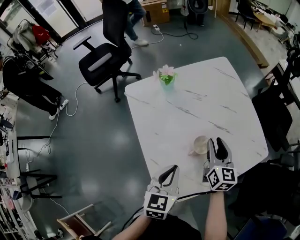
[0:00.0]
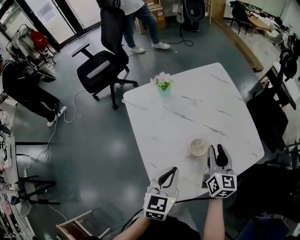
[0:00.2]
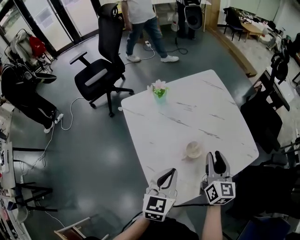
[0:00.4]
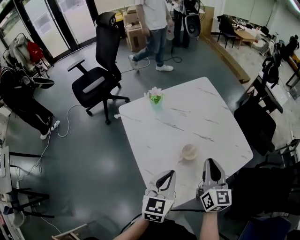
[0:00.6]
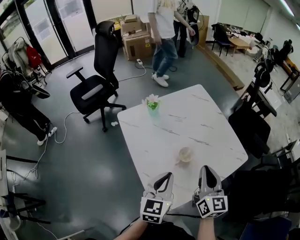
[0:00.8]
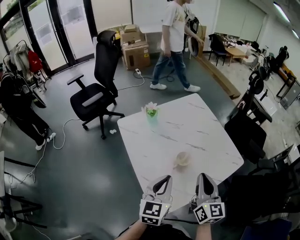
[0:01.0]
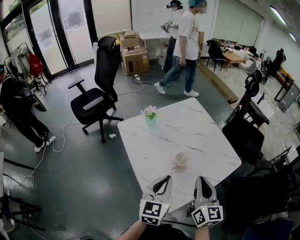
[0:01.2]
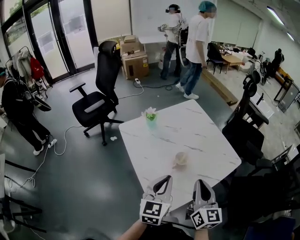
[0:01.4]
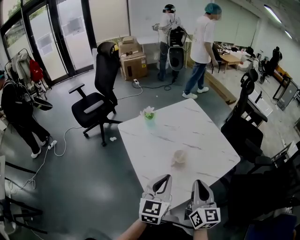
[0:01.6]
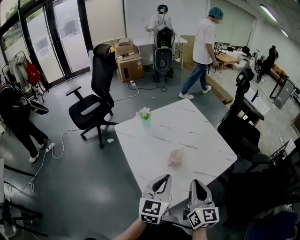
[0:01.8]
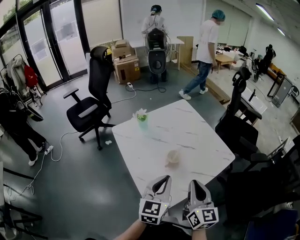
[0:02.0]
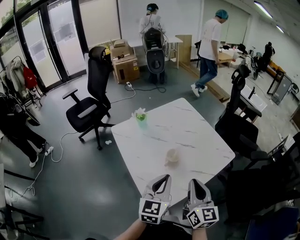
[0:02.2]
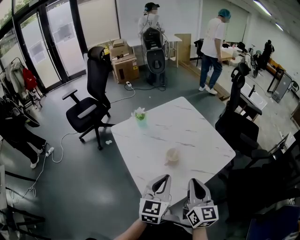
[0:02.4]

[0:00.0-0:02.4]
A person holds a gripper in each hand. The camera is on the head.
0:00.0 to 0:01.2: The left gripper goes about 10 cm upward. Meanwhile the right gripper shifts approximately 20 cm backward and upward, and closes its fingers.
0:01.2 to 0:02.4: The grippers move only a little.

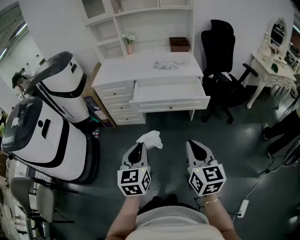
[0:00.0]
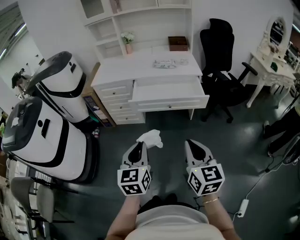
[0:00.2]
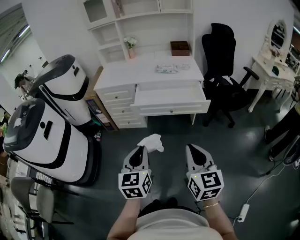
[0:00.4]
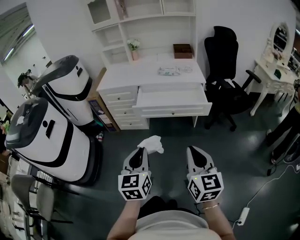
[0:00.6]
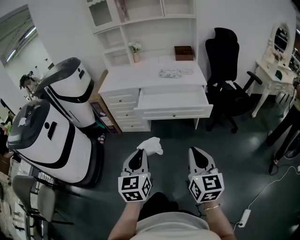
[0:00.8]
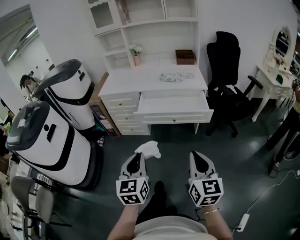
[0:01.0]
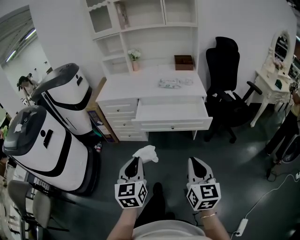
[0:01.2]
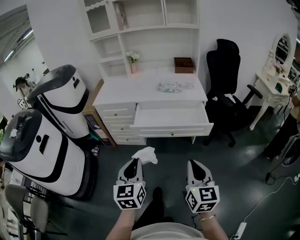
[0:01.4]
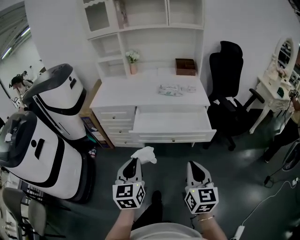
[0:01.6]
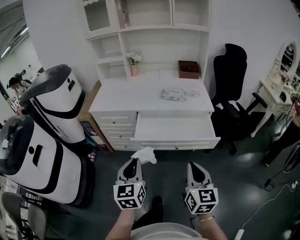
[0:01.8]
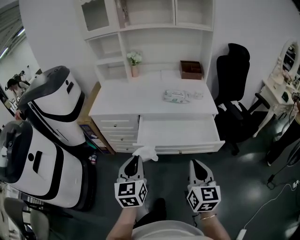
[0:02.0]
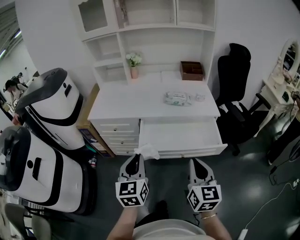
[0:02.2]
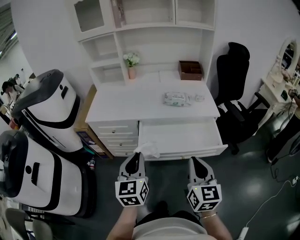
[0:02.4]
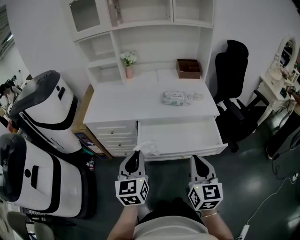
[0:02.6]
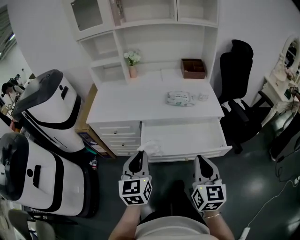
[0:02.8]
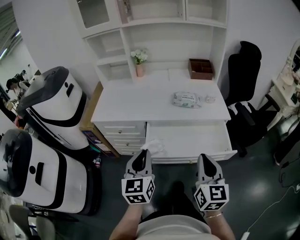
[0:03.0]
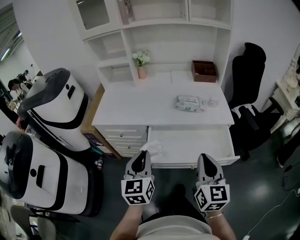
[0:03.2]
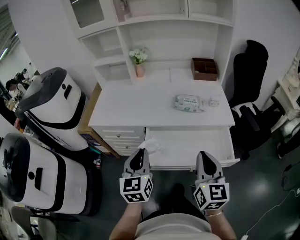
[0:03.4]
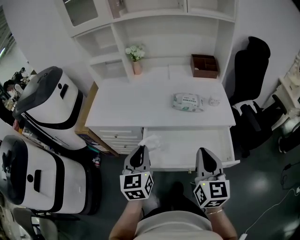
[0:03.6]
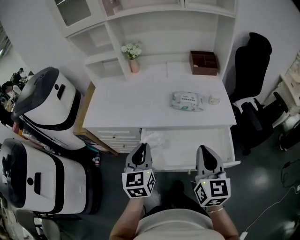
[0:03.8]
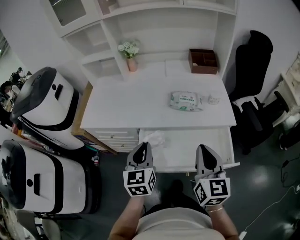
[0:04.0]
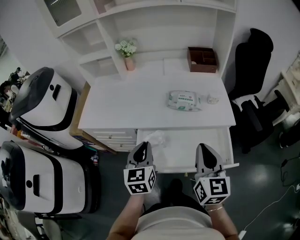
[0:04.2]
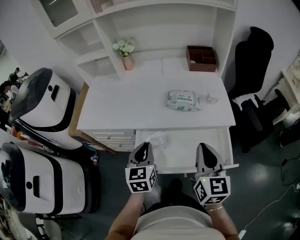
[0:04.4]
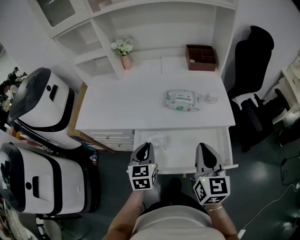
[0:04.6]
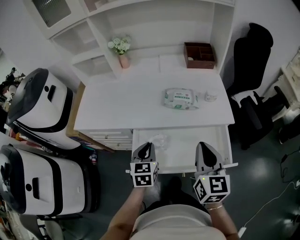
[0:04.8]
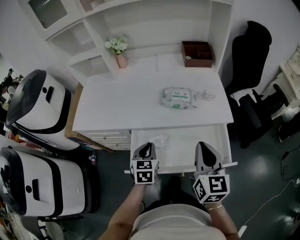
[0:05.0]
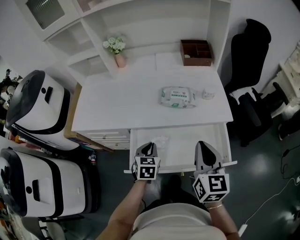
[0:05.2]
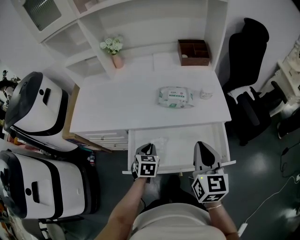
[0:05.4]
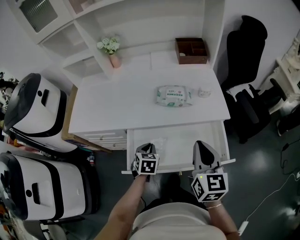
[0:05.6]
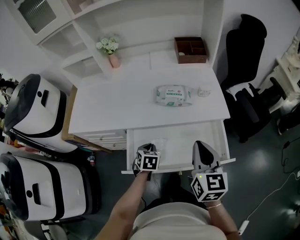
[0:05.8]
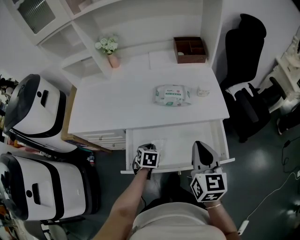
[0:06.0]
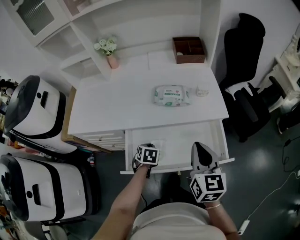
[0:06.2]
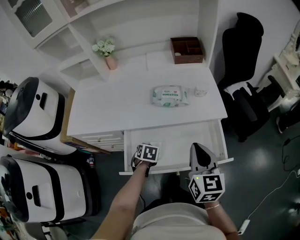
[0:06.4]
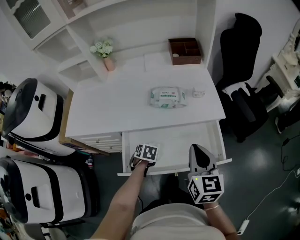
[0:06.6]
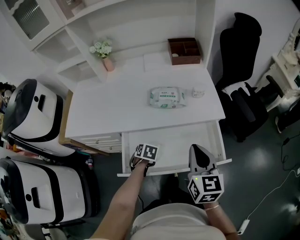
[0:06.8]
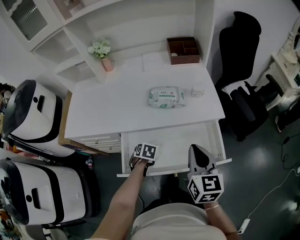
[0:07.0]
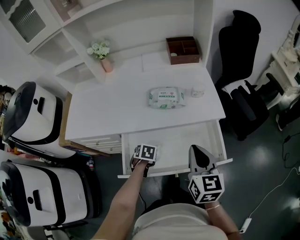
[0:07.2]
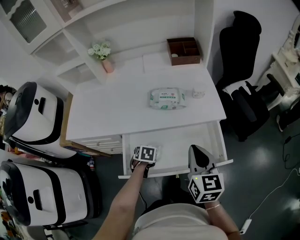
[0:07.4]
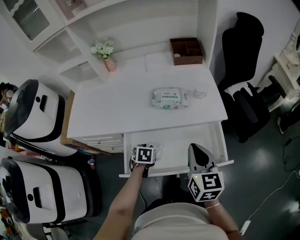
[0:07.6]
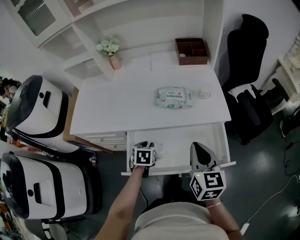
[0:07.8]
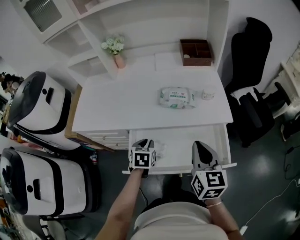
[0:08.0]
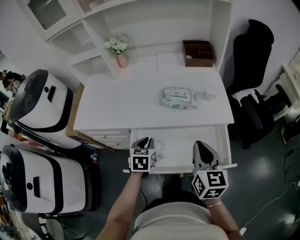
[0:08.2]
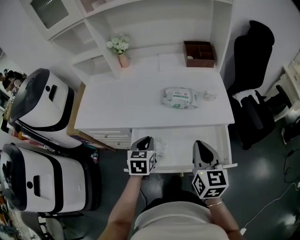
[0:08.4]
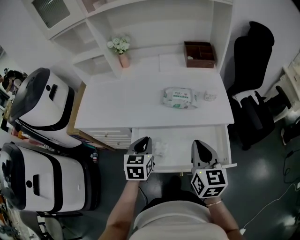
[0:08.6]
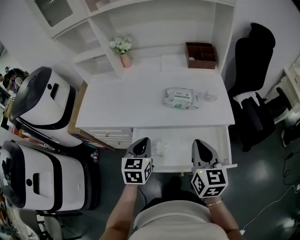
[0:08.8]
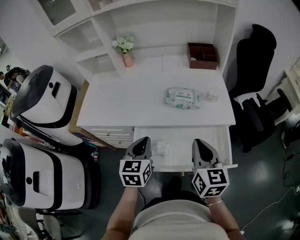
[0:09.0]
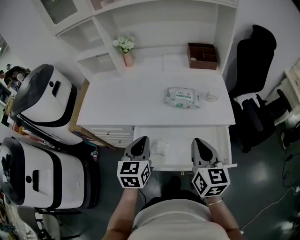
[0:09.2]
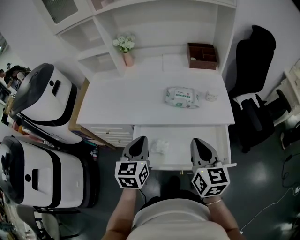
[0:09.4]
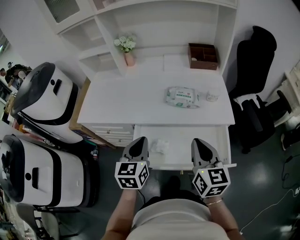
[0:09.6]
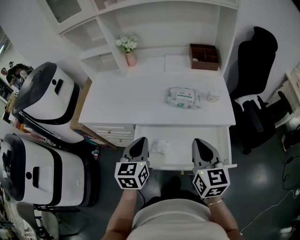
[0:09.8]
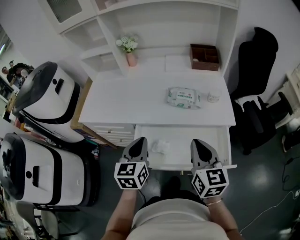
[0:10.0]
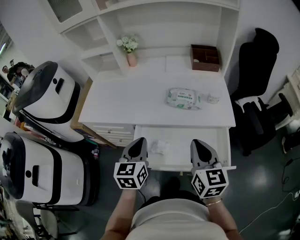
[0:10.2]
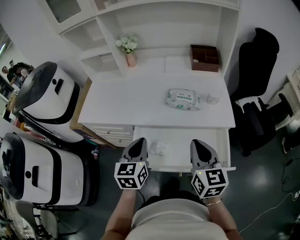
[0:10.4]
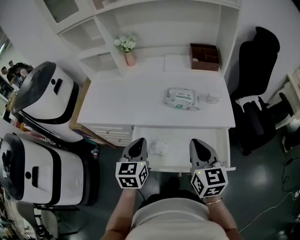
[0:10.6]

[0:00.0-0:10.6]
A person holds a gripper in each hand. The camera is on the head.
0:00.0 to 0:01.6: The grippers both shift forward by about 15 cm.
0:01.6 to 0:03.0: The grippers both shift forward by approximately 20 cm.
0:03.0 to 0:04.6: The left gripper shifts about 20 cm forward, downward and to the right, while the right gripper travels forward by about 15 cm.
0:04.6 to 0:06.0: The left gripper is displaced downward by about 15 cm, and tips its fingers downward by about 30 degrees.
0:06.0 to 0:07.6: The left gripper opens its fingers.
0:07.6 to 0:09.0: The left gripper shifts some 20 cm upward, tips its fingers upward by roughly 40 degrees, and closes up.
0:09.0 to 0:10.6: There are only small adjustments of the grippers.

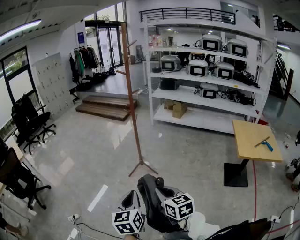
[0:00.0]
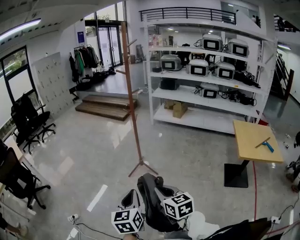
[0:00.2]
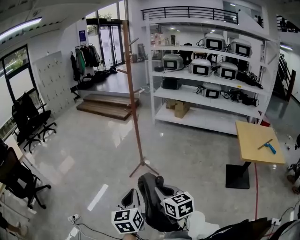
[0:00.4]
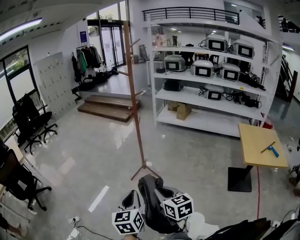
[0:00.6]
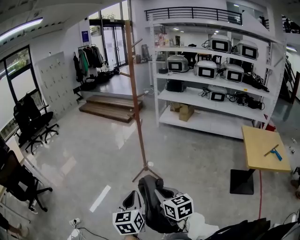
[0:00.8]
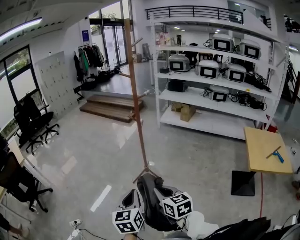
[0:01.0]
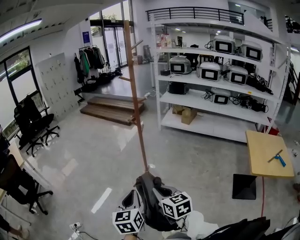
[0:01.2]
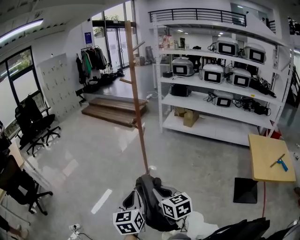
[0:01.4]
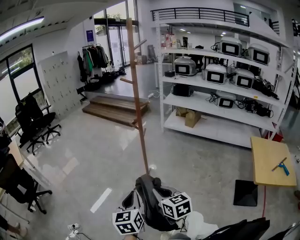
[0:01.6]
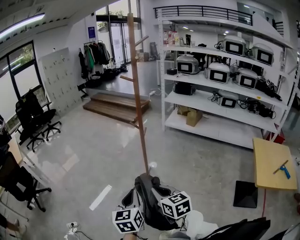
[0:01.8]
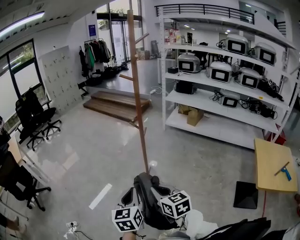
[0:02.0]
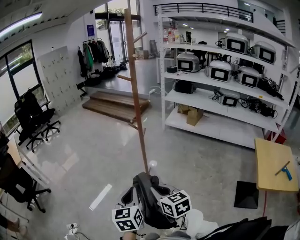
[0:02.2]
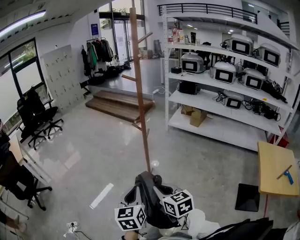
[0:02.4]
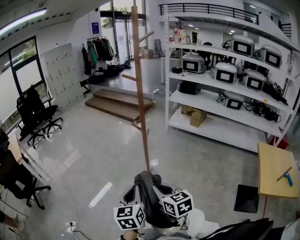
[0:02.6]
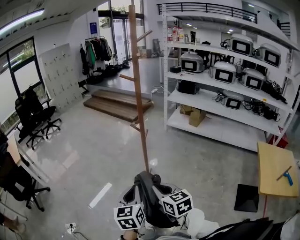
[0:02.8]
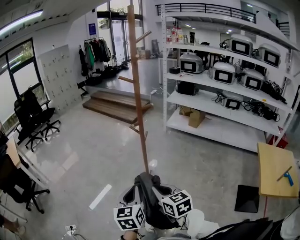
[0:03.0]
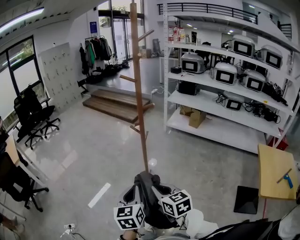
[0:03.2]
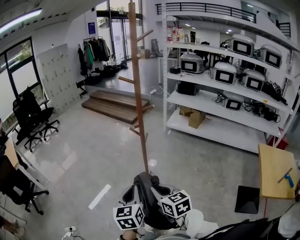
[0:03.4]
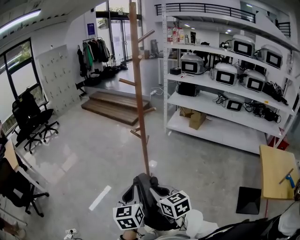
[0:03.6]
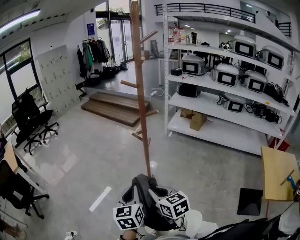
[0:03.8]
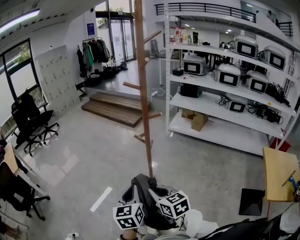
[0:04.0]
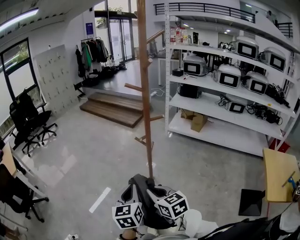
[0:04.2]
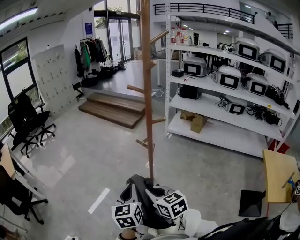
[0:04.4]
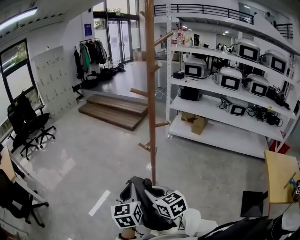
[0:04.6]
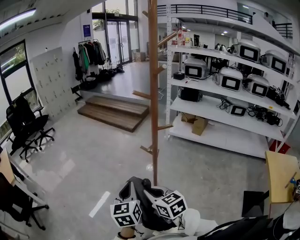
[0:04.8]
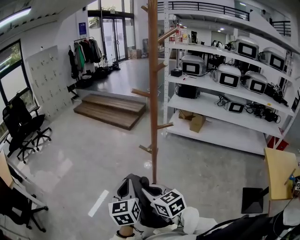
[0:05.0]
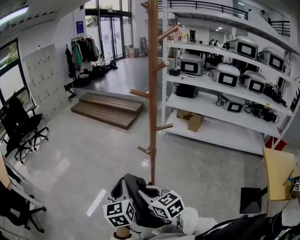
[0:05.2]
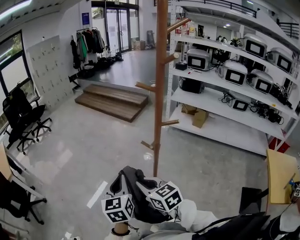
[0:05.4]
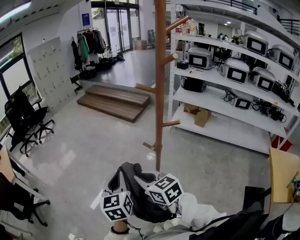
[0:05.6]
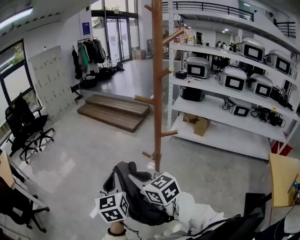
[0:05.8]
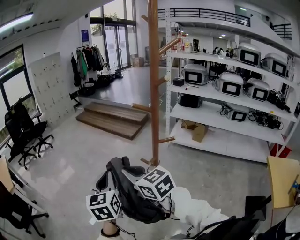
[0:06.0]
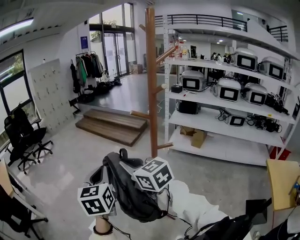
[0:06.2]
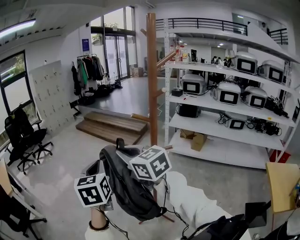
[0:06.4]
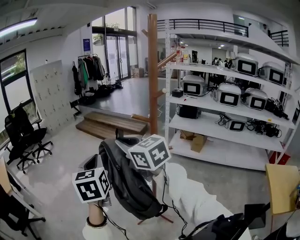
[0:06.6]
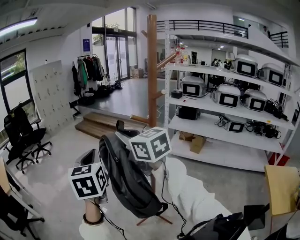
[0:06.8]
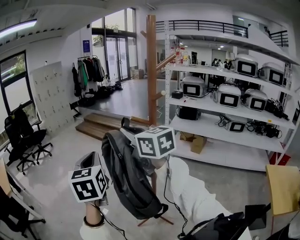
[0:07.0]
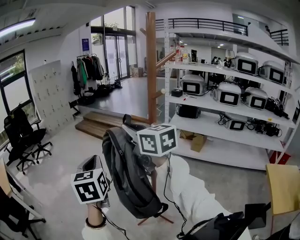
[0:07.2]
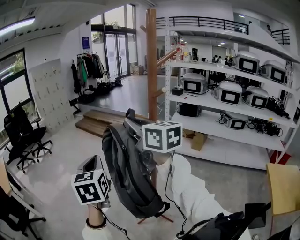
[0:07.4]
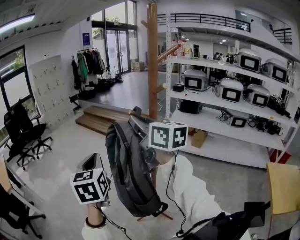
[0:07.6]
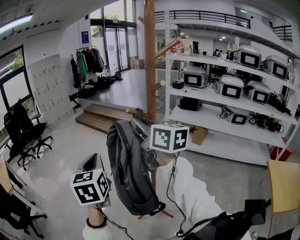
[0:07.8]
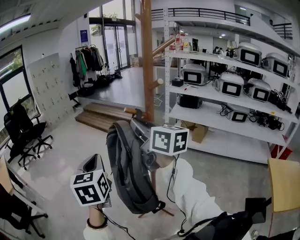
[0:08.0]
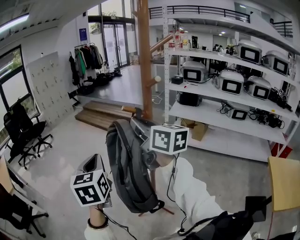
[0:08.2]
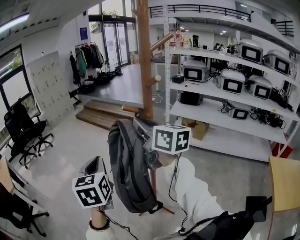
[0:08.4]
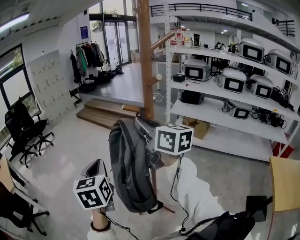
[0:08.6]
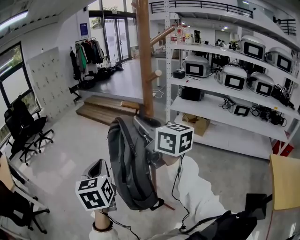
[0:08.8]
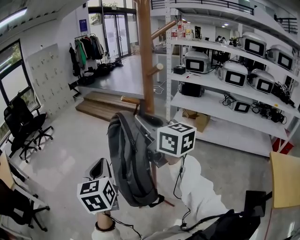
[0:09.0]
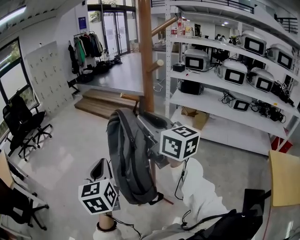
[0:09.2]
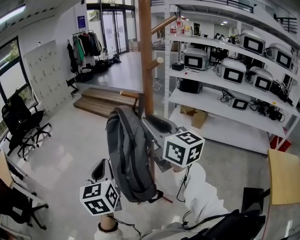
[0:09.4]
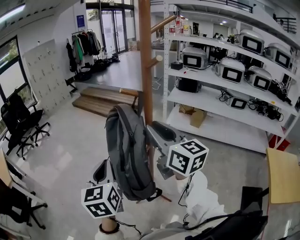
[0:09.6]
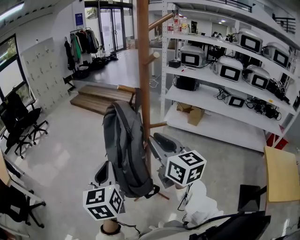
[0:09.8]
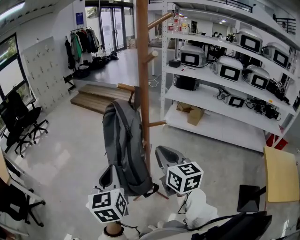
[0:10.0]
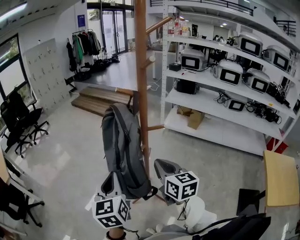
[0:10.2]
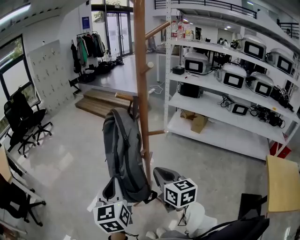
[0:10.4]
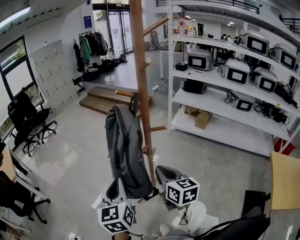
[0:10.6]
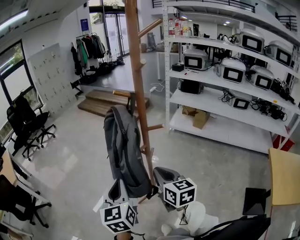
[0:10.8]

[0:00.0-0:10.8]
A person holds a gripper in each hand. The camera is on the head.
0:00.0 to 0:01.6: The grippers both shift forward by approximately 20 cm.
0:01.6 to 0:03.0: Both grippers travel together forward, roughly 10 cm.
0:03.0 to 0:04.6: The right gripper shifts some 15 cm forward and to the left. Meanwhile the left gripper goes some 20 cm forward.
0:04.6 to 0:06.2: Both grippers travel together upward and forward, about 25 cm.
0:06.2 to 0:07.8: The right gripper moves upward, to the right and forward, some 15 cm, and swivels some 30 degrees.
0:07.8 to 0:09.2: The left gripper heads downward, covering some 5 cm; the right gripper shifts by some 5 cm.
0:09.2 to 0:10.8: The right gripper goes about 25 cm downward and backward, and rotates about 20 degrees. The left gripper heads backward and downward, covering some 10 cm.
